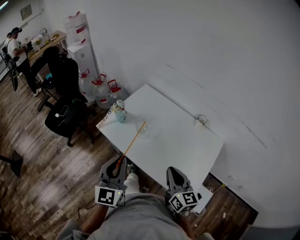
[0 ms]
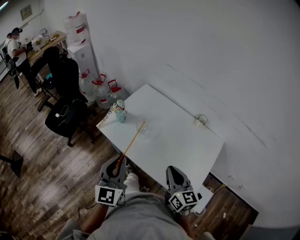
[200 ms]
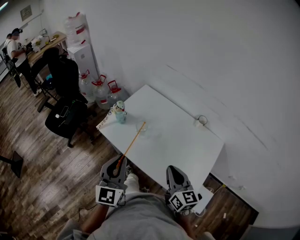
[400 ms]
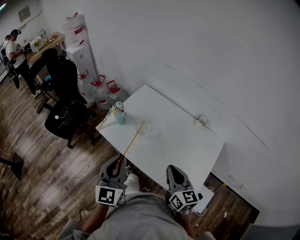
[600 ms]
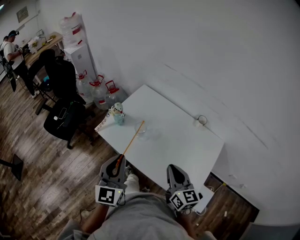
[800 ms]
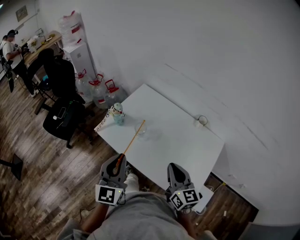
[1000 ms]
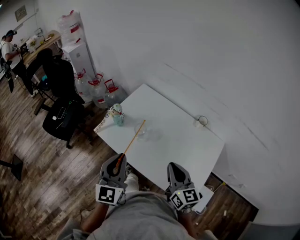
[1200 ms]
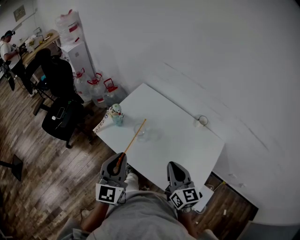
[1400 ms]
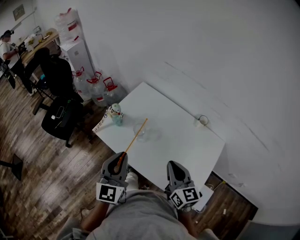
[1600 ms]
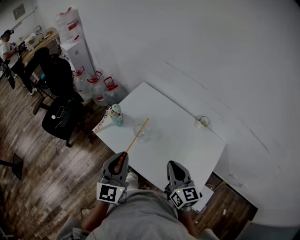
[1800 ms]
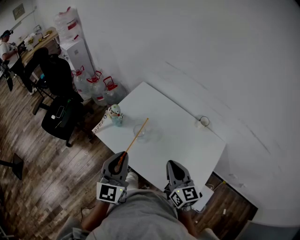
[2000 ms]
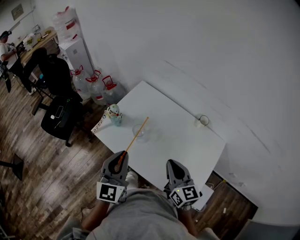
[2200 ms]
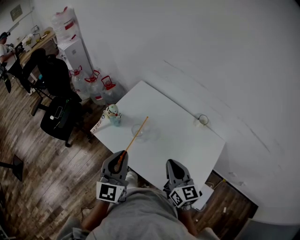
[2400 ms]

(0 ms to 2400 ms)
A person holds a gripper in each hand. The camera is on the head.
0 ms - 1200 ms: Both grippers move forward, some 5 cm.
1200 ms - 2400 ms: The left gripper changes place by some 5 cm.

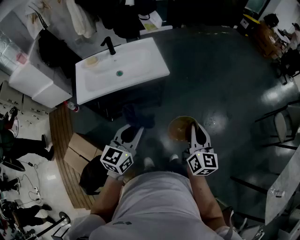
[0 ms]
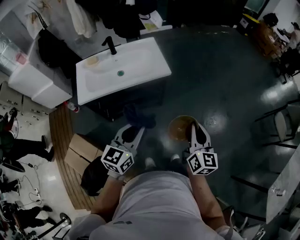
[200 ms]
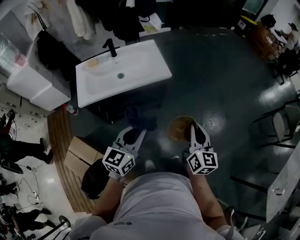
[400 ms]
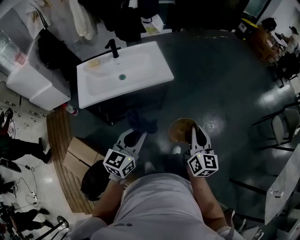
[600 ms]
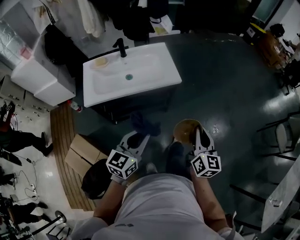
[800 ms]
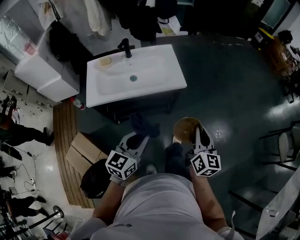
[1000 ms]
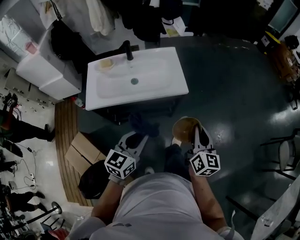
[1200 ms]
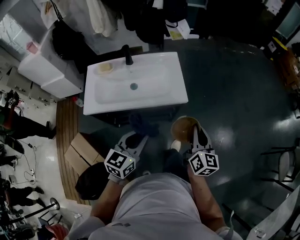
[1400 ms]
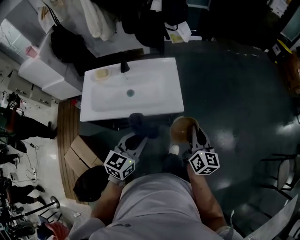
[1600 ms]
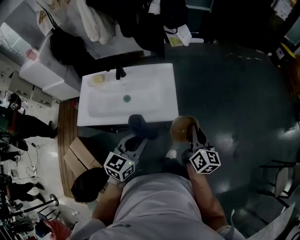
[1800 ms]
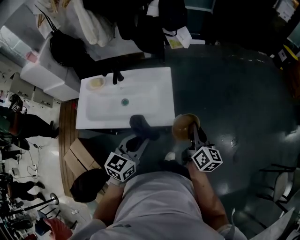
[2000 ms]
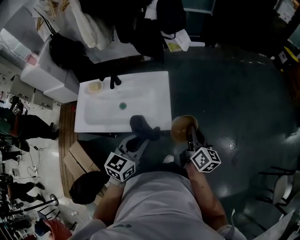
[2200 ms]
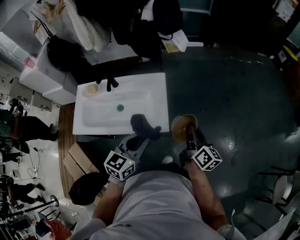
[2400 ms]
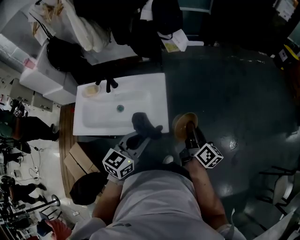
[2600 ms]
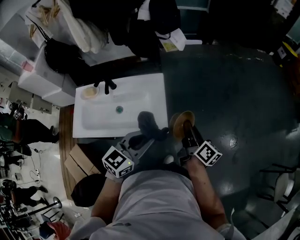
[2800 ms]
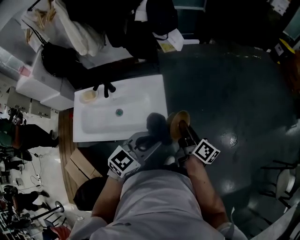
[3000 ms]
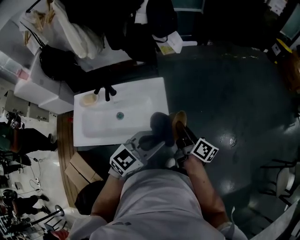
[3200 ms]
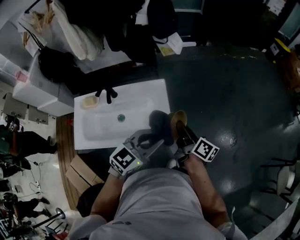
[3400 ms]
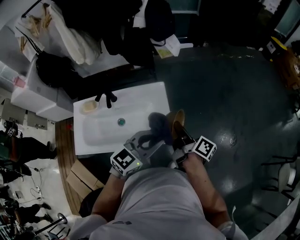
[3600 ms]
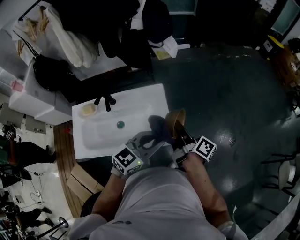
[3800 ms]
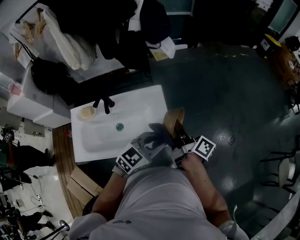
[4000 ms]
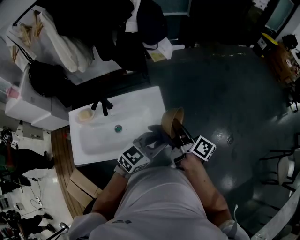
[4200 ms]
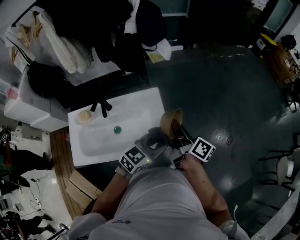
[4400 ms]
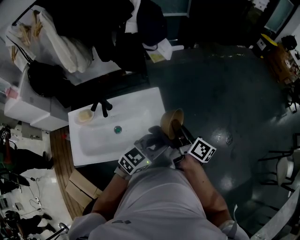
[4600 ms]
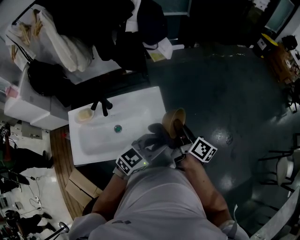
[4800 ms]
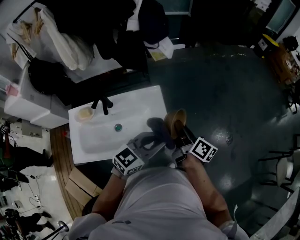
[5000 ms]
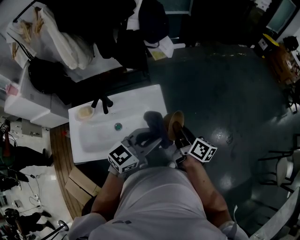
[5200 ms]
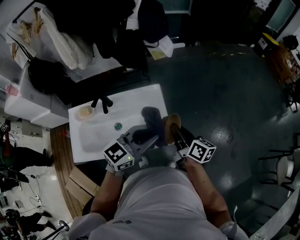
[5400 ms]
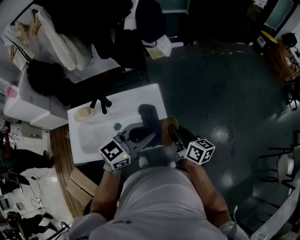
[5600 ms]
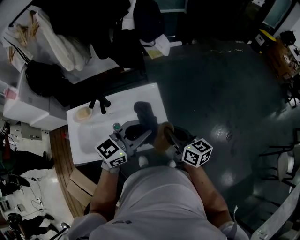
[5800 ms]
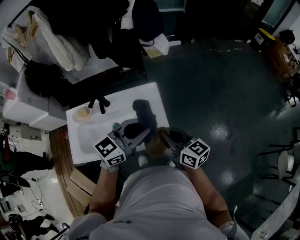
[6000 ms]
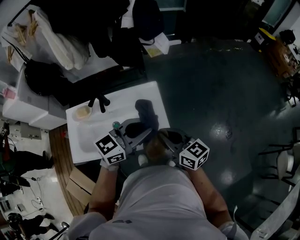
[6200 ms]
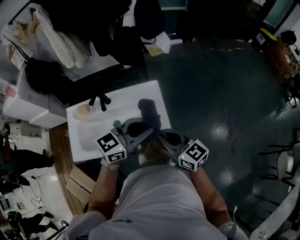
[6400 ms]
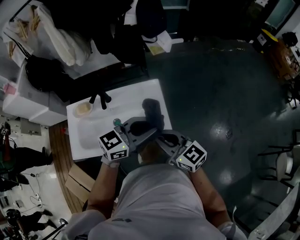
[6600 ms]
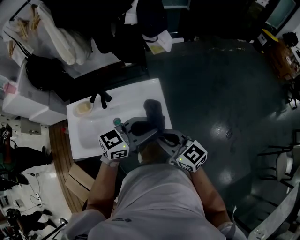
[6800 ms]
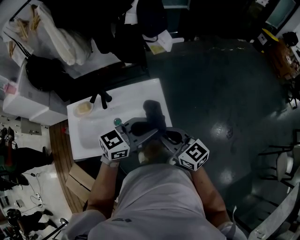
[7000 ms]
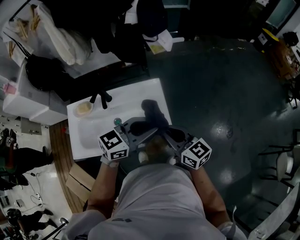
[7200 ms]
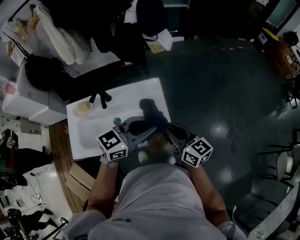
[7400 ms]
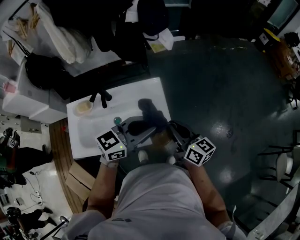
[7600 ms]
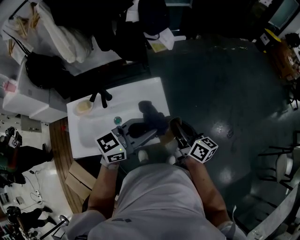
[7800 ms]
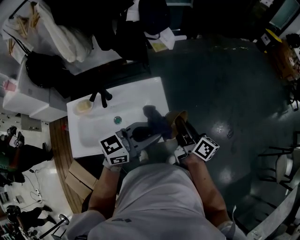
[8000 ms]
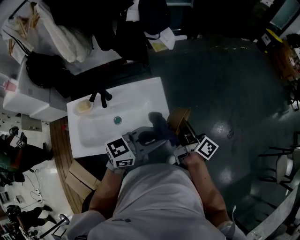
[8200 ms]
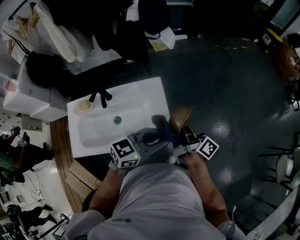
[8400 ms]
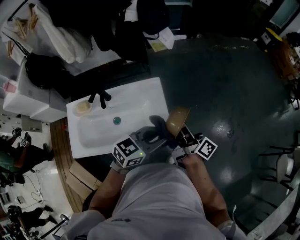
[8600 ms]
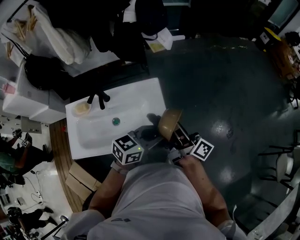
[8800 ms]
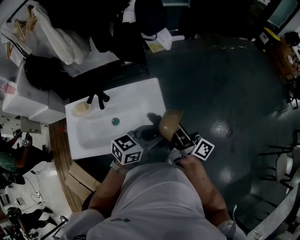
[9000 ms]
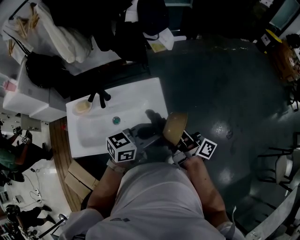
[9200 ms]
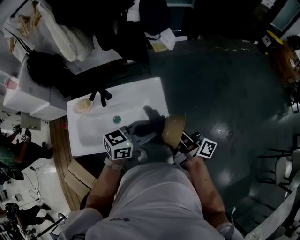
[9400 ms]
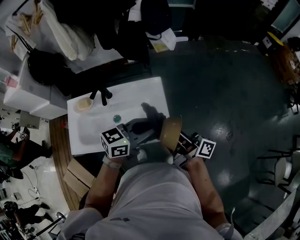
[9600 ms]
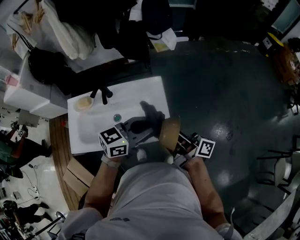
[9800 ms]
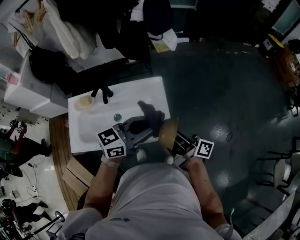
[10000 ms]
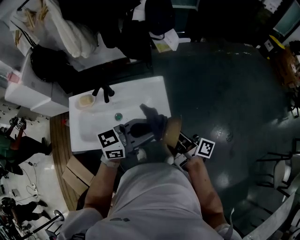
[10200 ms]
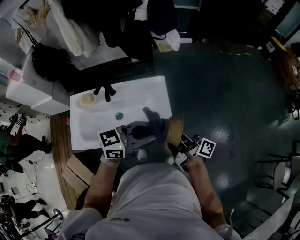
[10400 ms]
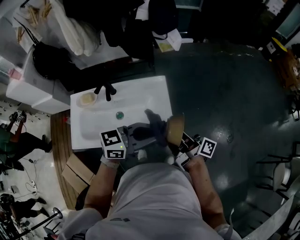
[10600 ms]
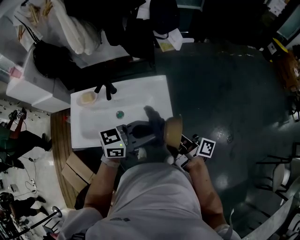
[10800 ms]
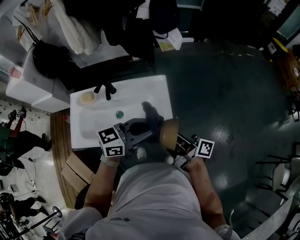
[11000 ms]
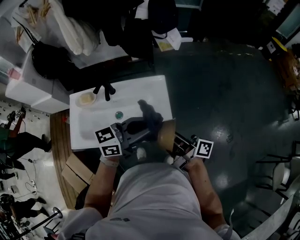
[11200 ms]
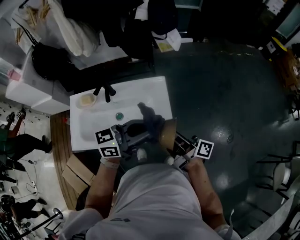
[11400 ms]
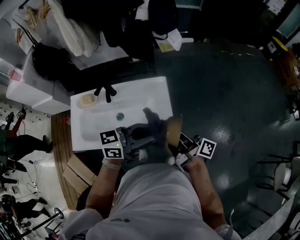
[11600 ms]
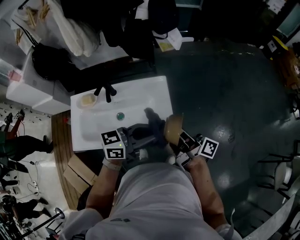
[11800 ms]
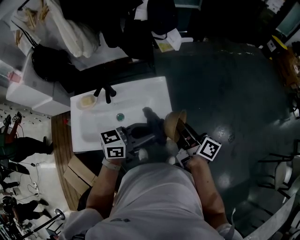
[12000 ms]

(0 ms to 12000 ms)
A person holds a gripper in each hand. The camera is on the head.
0 ms - 1600 ms: The grippers both shift forward by some 25 cm.
1600 ms - 3000 ms: The right gripper moves forward, about 15 cm, and swivels about 40 degrees. Meanwhile the left gripper shifts approximately 20 cm forward and to the right, and rotates about 20 degrees.
3000 ms - 4400 ms: The left gripper moves some 5 cm; the right gripper shifts some 10 cm to the left.
4400 ms - 6000 ms: The right gripper moves backward, approximately 5 cm, and turns by about 40 degrees. The left gripper travels upward and to the left by some 10 cm.
7600 ms - 9000 ms: The left gripper heads downward and to the right, covering about 10 cm. The right gripper swivels roughly 40 degrees.
9000 ms - 10400 ms: The left gripper heads upward, covering some 5 cm. The right gripper shifts by some 5 cm.
10400 ms - 12000 ms: The right gripper changes its angle by roughly 20 degrees.

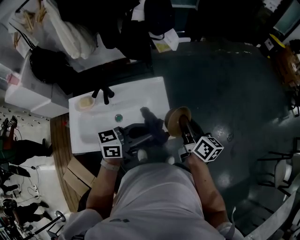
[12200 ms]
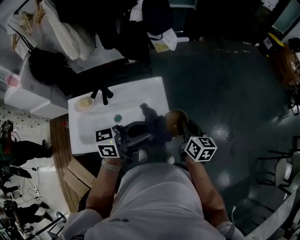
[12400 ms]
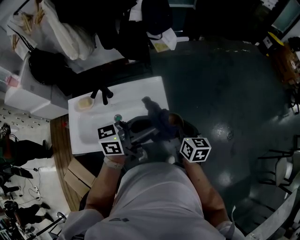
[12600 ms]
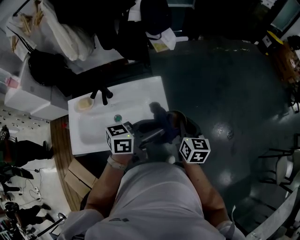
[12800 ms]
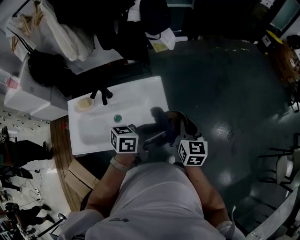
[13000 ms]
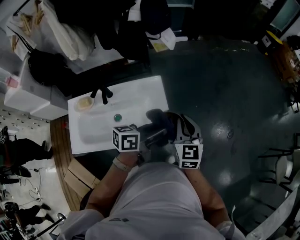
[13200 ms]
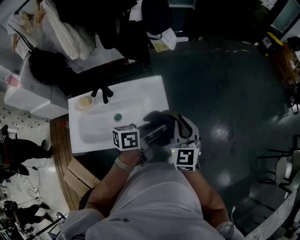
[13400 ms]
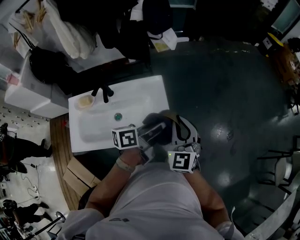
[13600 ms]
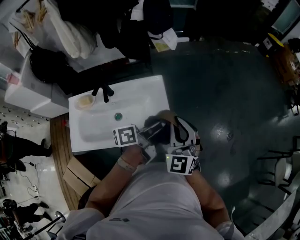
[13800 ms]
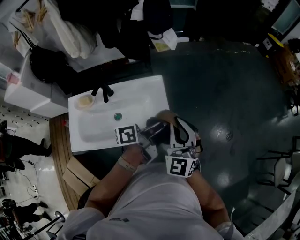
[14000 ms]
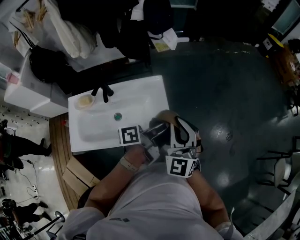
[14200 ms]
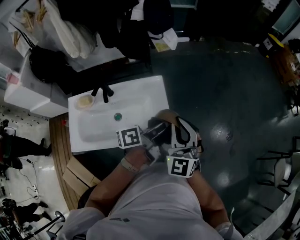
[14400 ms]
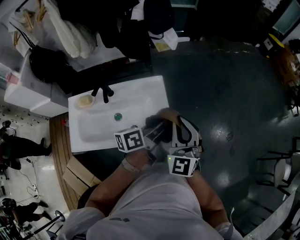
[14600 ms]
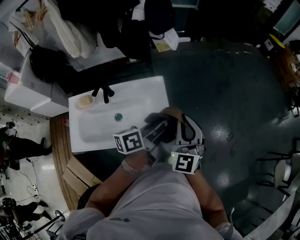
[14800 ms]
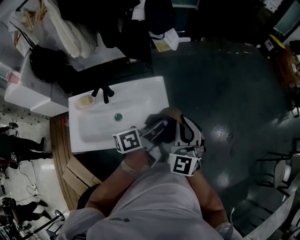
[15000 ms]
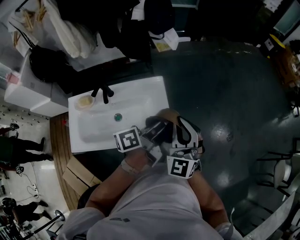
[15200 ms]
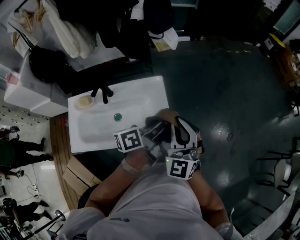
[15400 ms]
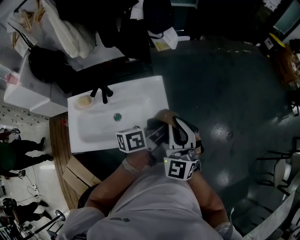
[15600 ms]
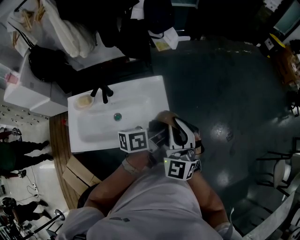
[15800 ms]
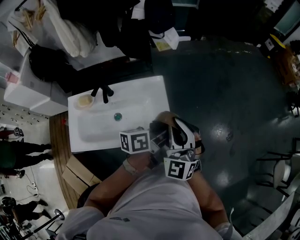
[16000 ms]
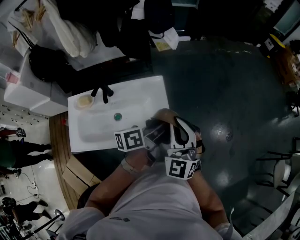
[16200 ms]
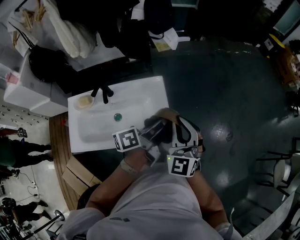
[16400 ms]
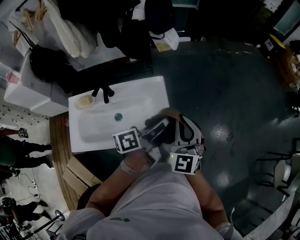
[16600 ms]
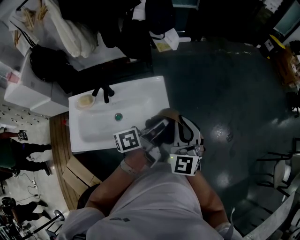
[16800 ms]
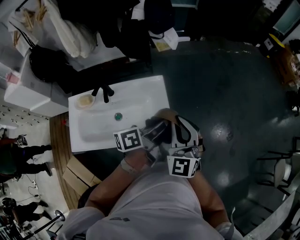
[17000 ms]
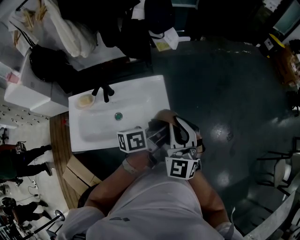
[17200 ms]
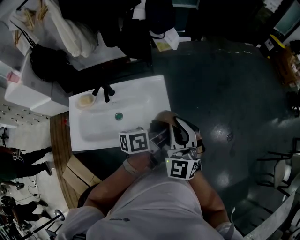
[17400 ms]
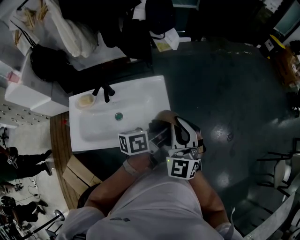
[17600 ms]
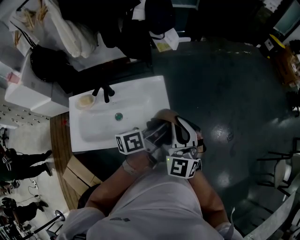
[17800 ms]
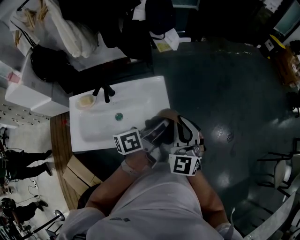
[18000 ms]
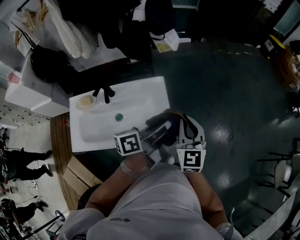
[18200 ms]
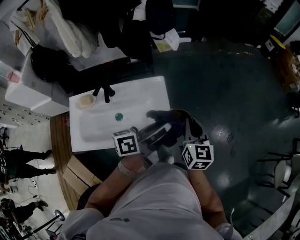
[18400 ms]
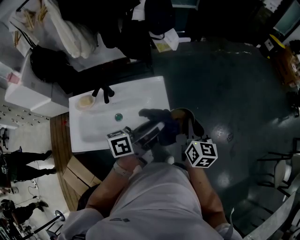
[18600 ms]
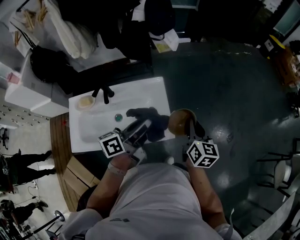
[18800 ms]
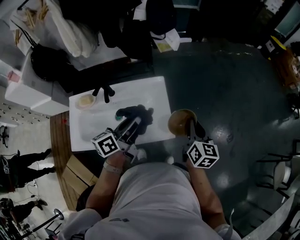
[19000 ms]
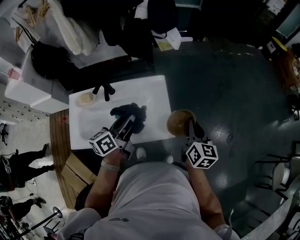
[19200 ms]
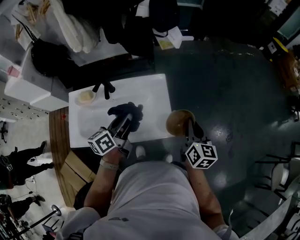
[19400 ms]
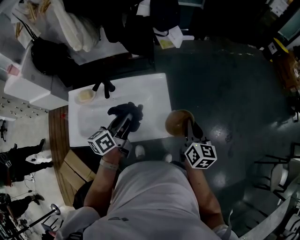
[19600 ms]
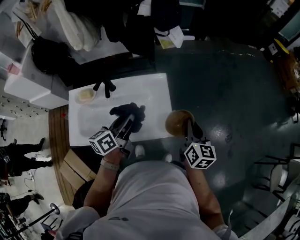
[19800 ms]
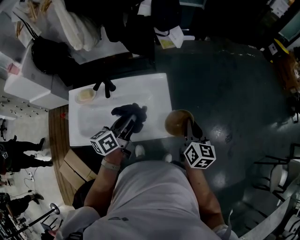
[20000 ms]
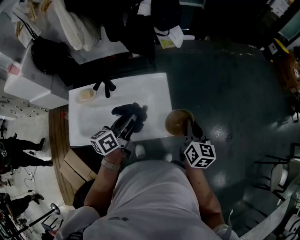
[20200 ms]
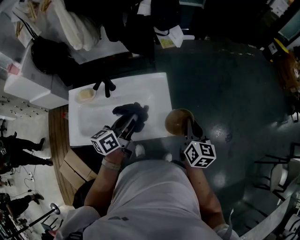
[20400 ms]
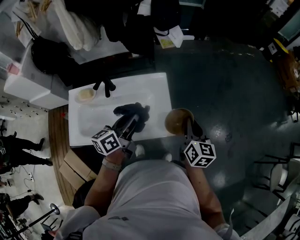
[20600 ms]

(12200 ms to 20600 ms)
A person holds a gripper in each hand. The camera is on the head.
12200 ms - 13600 ms: The right gripper moves about 5 cm, and twists approximately 70 degrees counterclockwise, seen from behind, while the left gripper ends up roughly 5 cm from where it was, and turns by about 30 degrees.
13600 ms - 17800 ms: The grippers make only small movements.
17800 ms - 19200 ms: The left gripper travels to the left by approximately 15 cm, and rotates approximately 20 degrees; the right gripper is displaced downward and to the right by approximately 10 cm, and twists approximately 60 degrees clockwise, seen from behind.
19200 ms - 20600 ms: There are only small adjustments of the grippers.

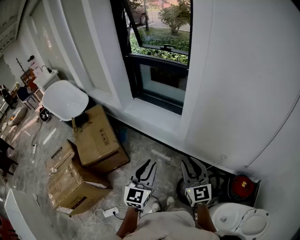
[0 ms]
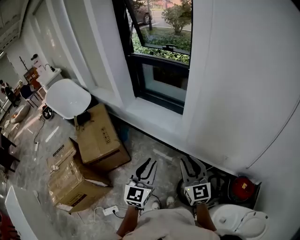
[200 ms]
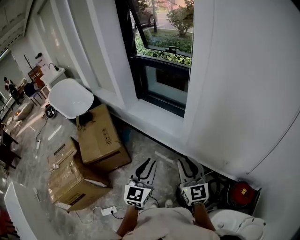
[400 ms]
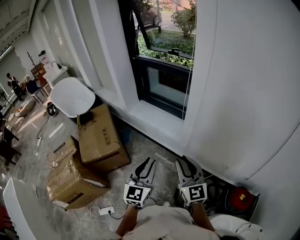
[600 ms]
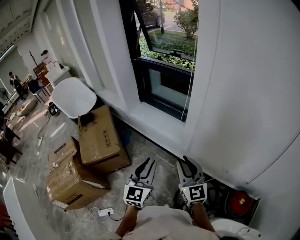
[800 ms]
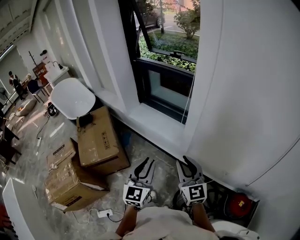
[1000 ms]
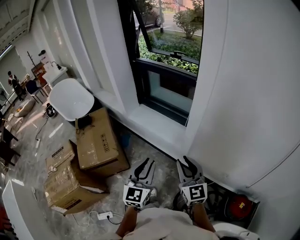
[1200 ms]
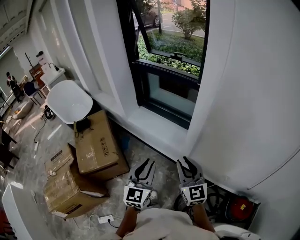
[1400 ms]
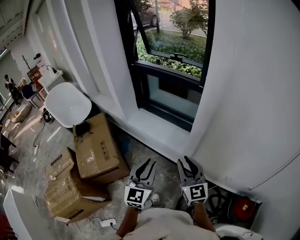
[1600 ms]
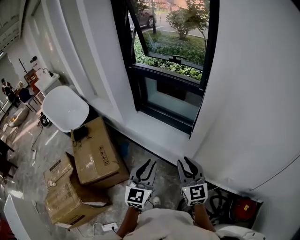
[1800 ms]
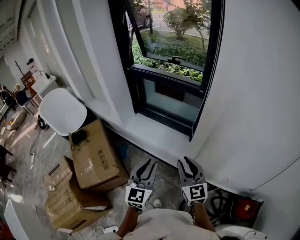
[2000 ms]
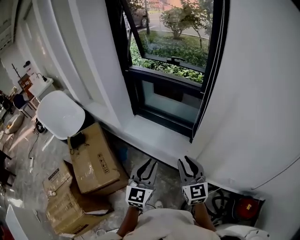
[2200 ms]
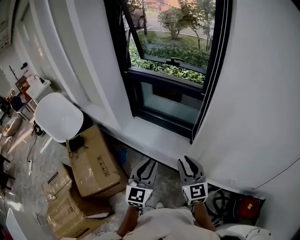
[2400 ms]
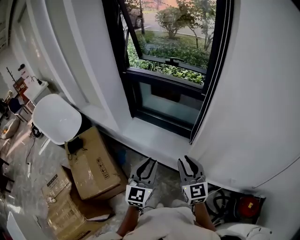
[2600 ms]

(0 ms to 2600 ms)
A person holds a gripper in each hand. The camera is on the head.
0 ms - 1200 ms: The grippers both shift forward by roughly 15 cm.
1200 ms - 2600 ms: The two grippers go approximately 20 cm forward and to the left.
